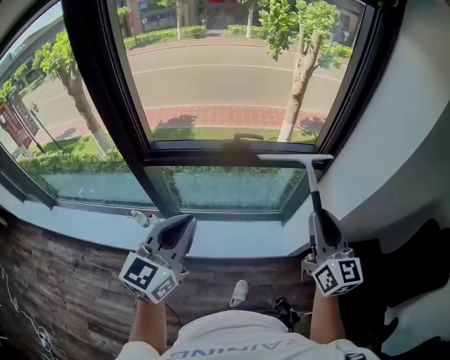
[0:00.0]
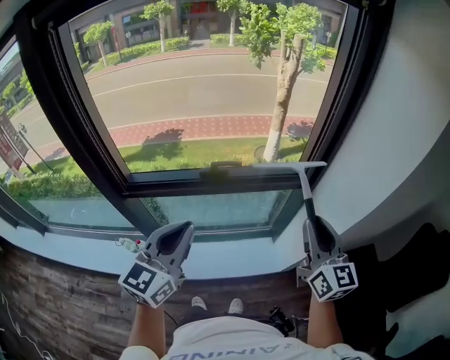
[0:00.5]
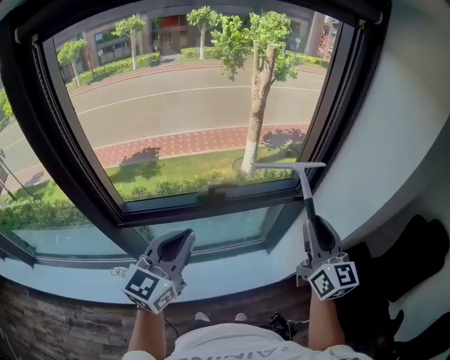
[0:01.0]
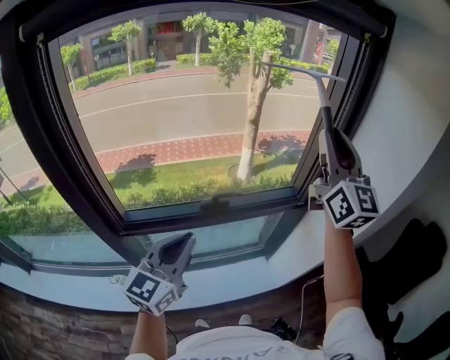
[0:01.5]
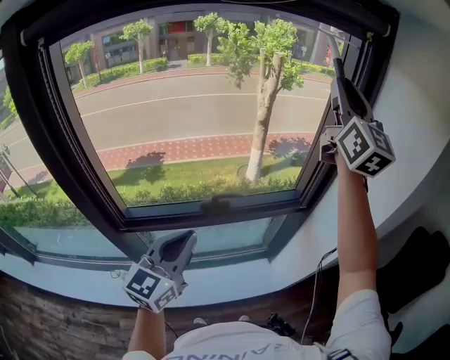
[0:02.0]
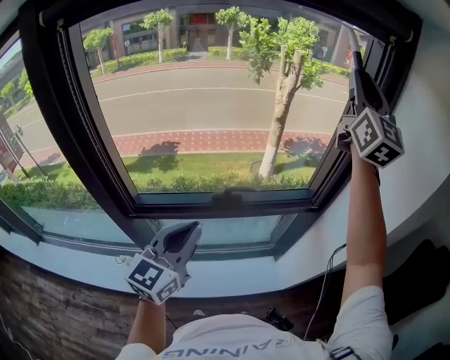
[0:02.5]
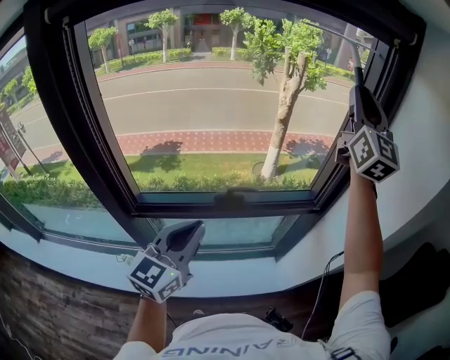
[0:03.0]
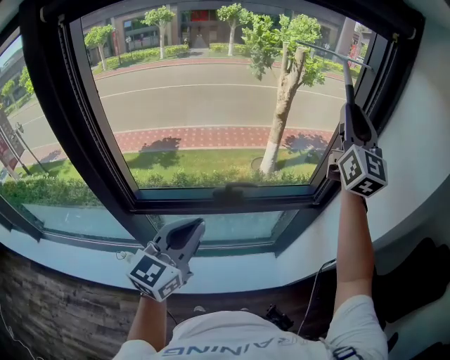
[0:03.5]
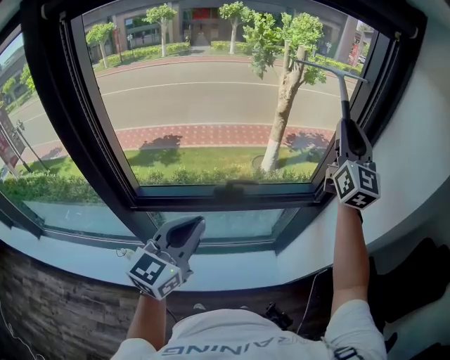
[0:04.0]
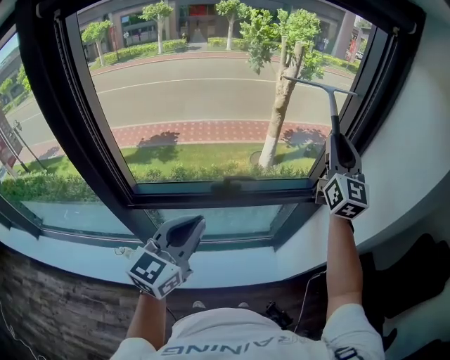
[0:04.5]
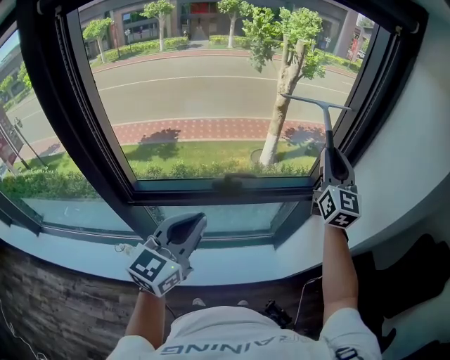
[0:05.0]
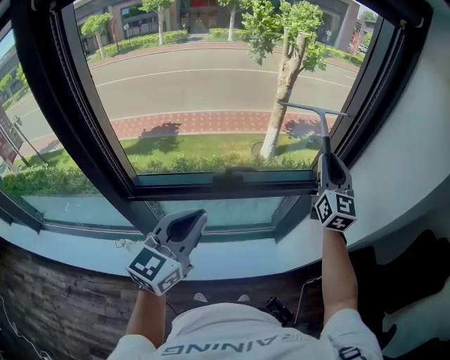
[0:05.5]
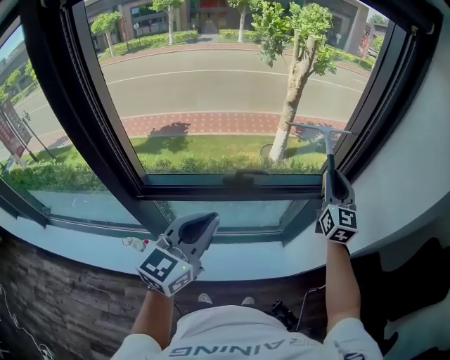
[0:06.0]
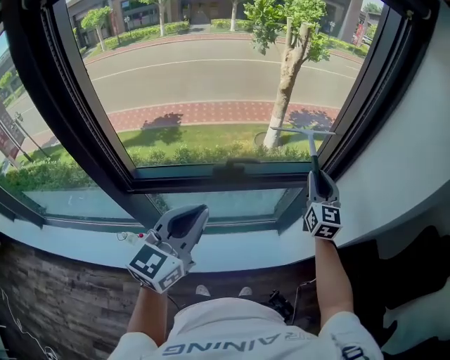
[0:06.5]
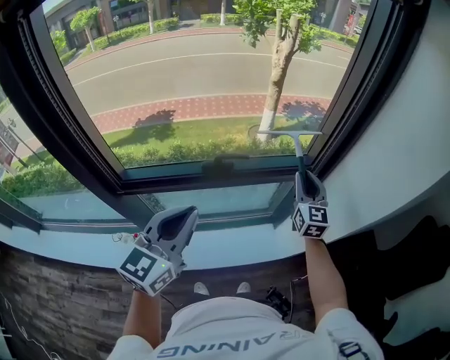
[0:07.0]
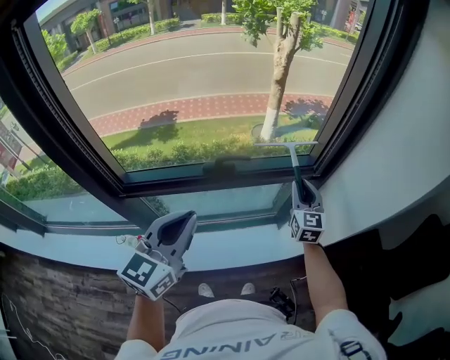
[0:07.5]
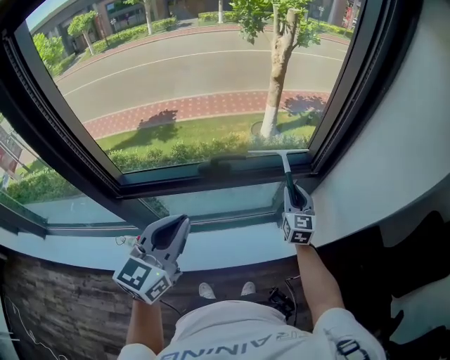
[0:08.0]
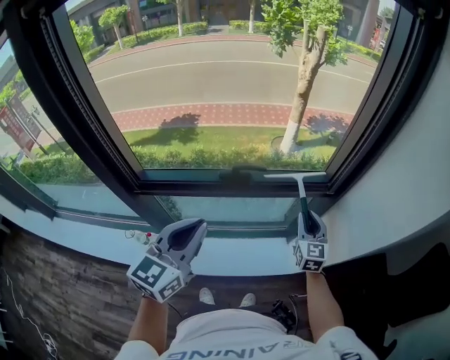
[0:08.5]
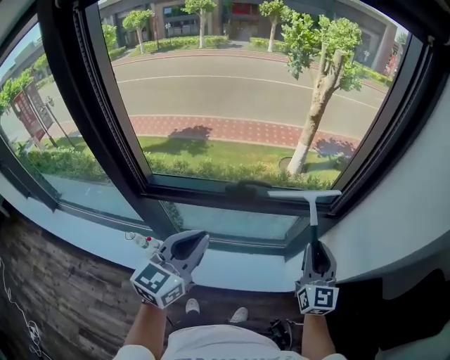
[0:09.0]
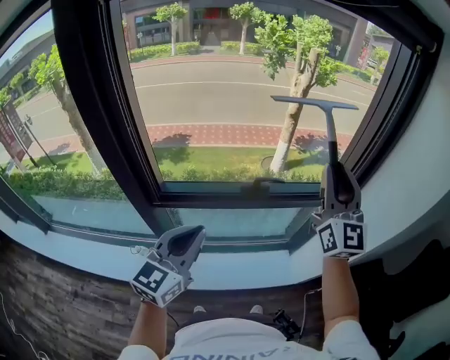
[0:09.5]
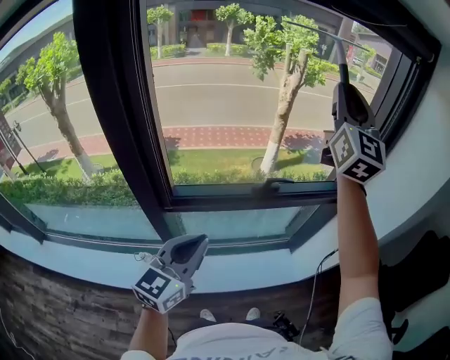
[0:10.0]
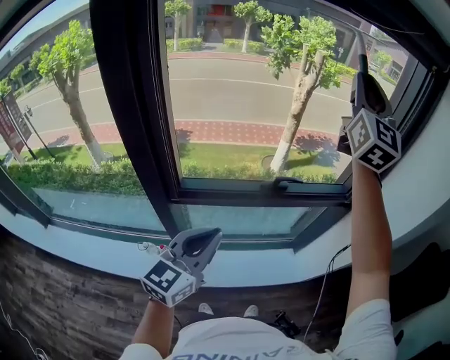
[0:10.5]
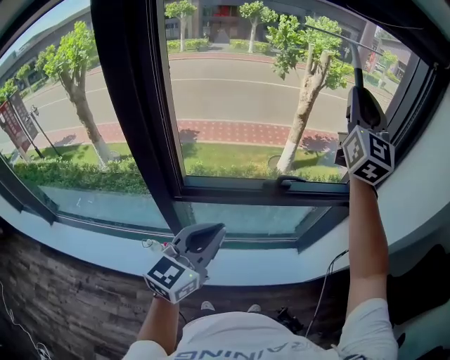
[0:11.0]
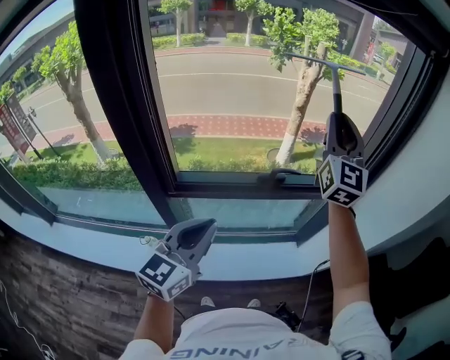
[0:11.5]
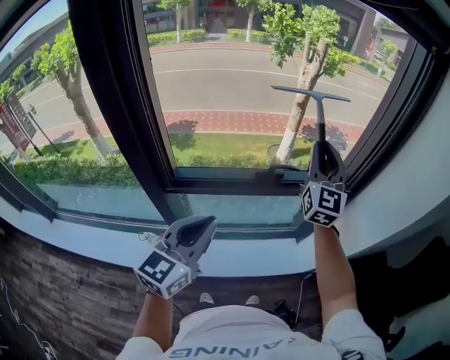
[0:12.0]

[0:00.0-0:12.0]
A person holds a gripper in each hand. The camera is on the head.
0:00.0 to 0:02.0: The right gripper shifts approximately 50 cm upward and forward, and swivels some 30 degrees. Meanwhile the left gripper goes about 20 cm forward.
0:02.0 to 0:04.0: The right gripper is displaced downward by approximately 15 cm.
0:04.0 to 0:06.0: The right gripper is displaced downward by roughly 20 cm.
0:06.0 to 0:08.0: The right gripper is displaced downward by about 20 cm.
0:08.0 to 0:10.0: The left gripper moves to the left and backward, some 20 cm; the right gripper shifts some 50 cm upward and to the left, and tilts its fingers approximately 40 degrees upward.
0:10.0 to 0:12.0: The right gripper goes approximately 20 cm downward. The left gripper moves about 5 cm.

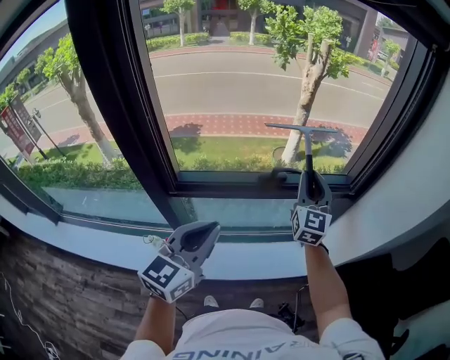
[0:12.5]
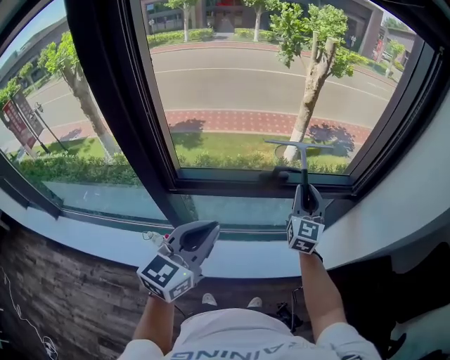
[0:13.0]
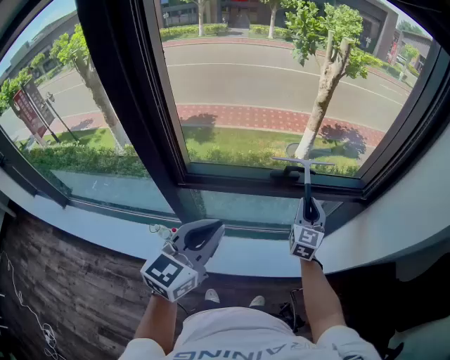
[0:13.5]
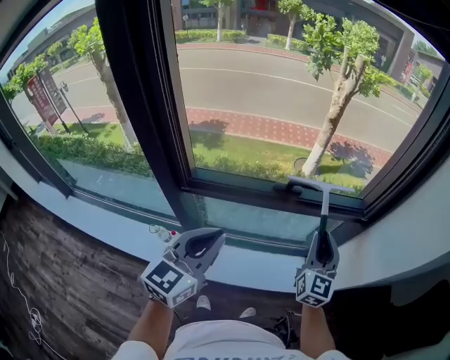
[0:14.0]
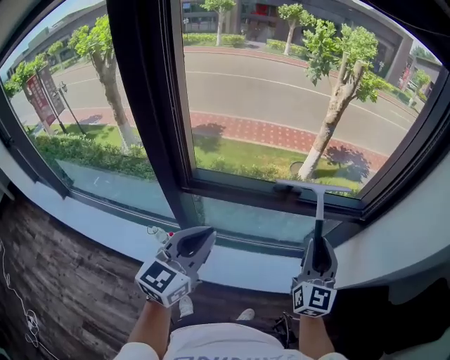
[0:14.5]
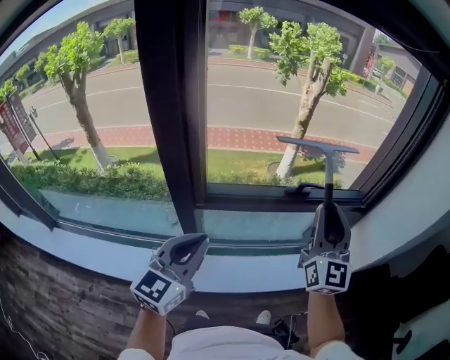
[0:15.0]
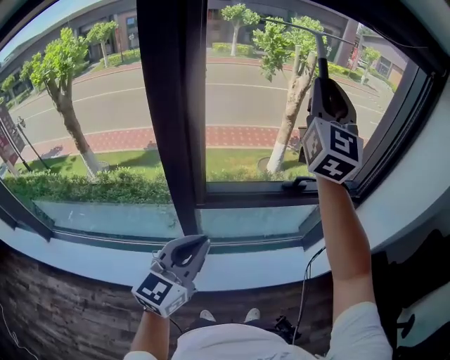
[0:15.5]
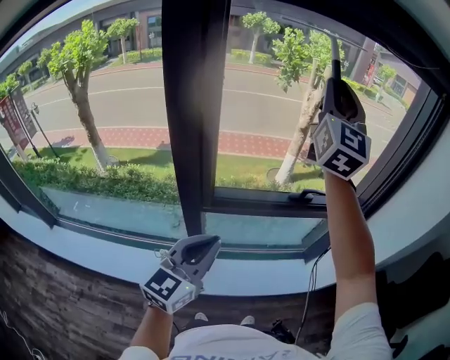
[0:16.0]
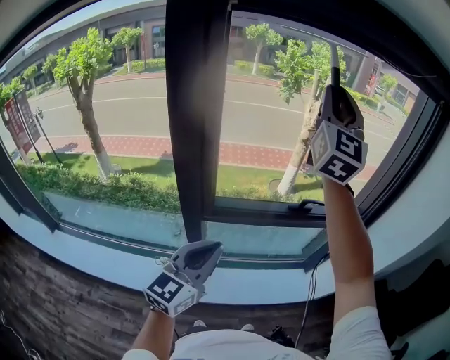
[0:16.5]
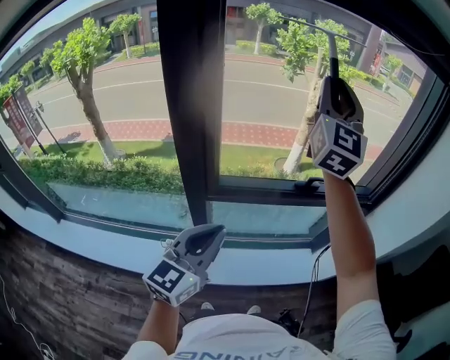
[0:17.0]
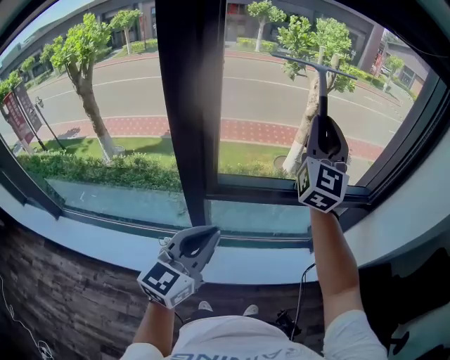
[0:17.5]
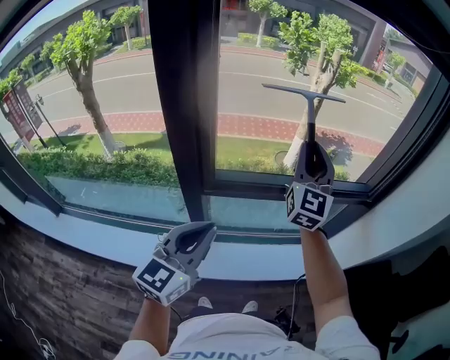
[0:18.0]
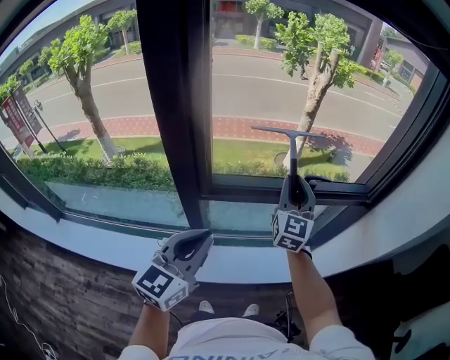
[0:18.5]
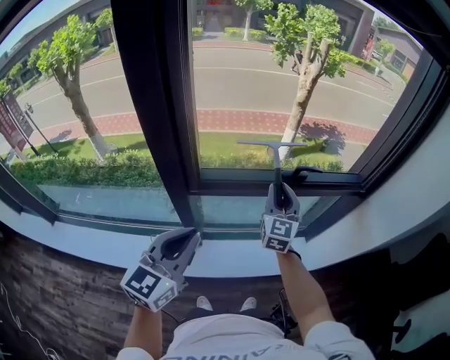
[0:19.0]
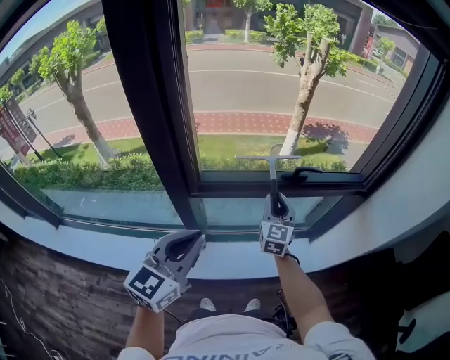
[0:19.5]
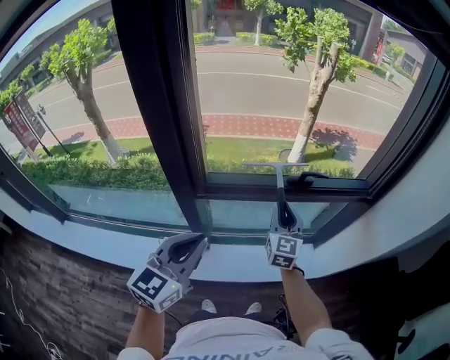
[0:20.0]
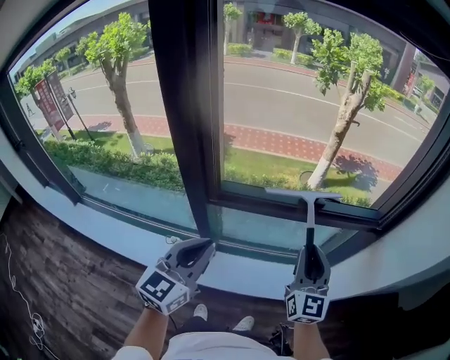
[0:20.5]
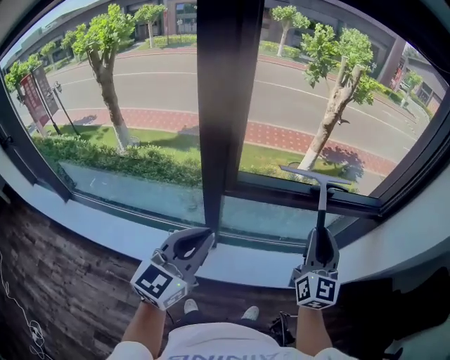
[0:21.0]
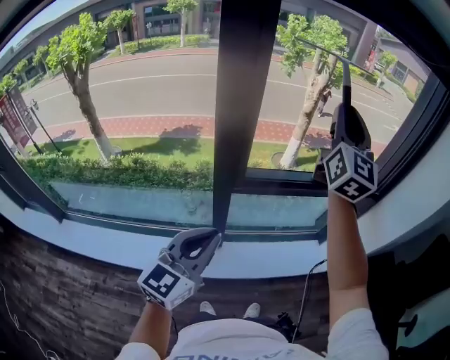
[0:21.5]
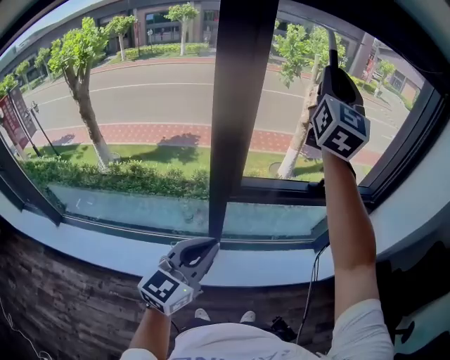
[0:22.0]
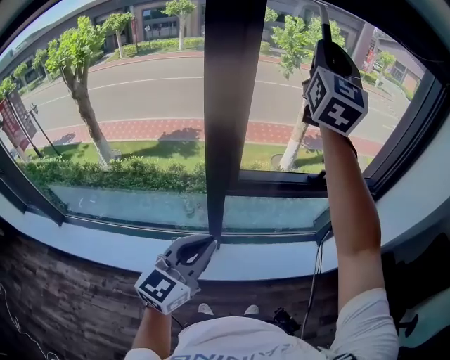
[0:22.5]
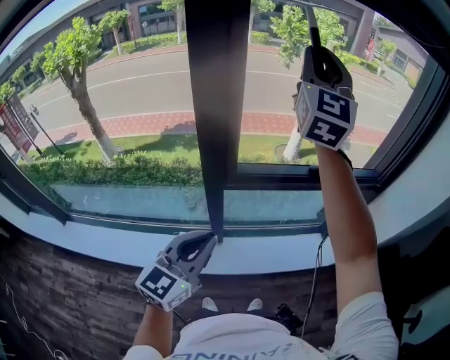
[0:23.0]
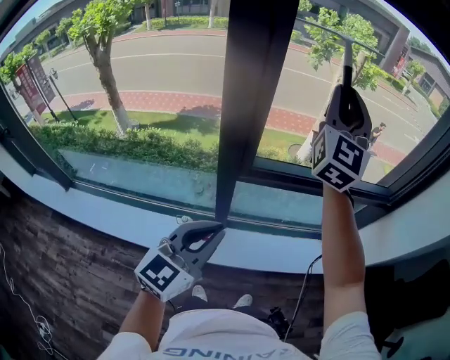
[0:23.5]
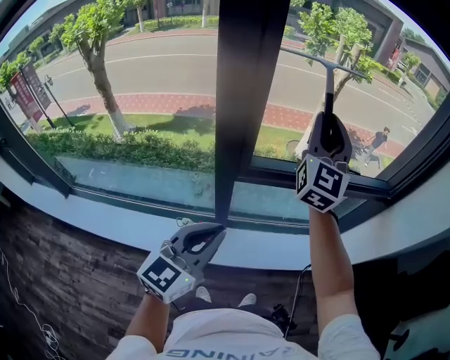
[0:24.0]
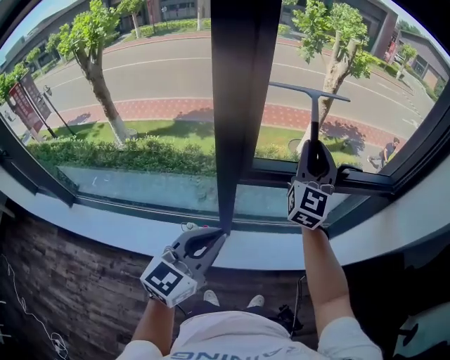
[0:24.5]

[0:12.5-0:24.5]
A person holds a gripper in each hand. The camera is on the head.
0:12.5 to 0:14.5: The right gripper moves backward, about 15 cm, and travels downward and back again, about 15 cm each way.
0:14.5 to 0:16.5: The right gripper goes roughly 50 cm upward and to the left, and turns by about 30 degrees, while the left gripper is displaced to the left and backward by roughly 15 cm.
0:16.5 to 0:18.5: The right gripper travels downward by some 35 cm, and turns by roughly 30 degrees.
0:18.5 to 0:20.5: The right gripper shifts roughly 15 cm backward and to the right, and moves roughly 15 cm downward and comes back.
0:20.5 to 0:22.5: The right gripper travels upward and to the left by roughly 50 cm, and changes its angle by roughly 30 degrees, while the left gripper goes about 15 cm to the left and backward.
0:22.5 to 0:24.5: The right gripper heads downward, covering roughly 30 cm.

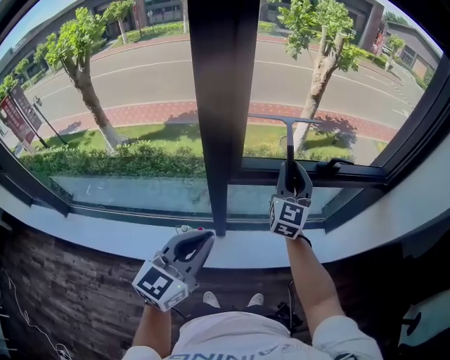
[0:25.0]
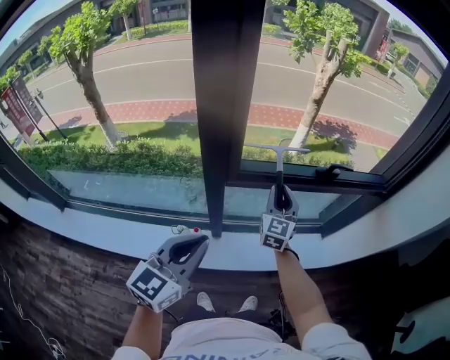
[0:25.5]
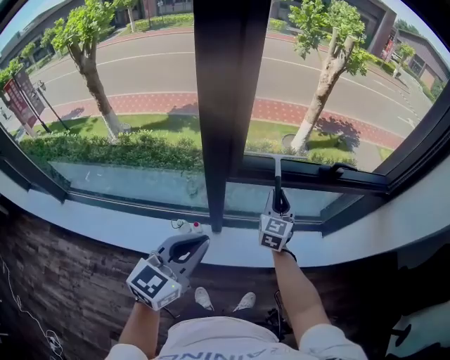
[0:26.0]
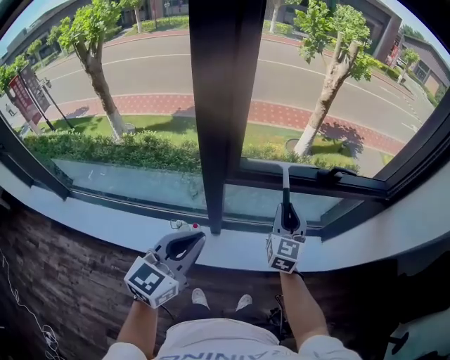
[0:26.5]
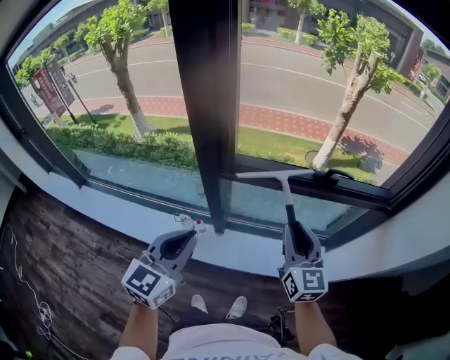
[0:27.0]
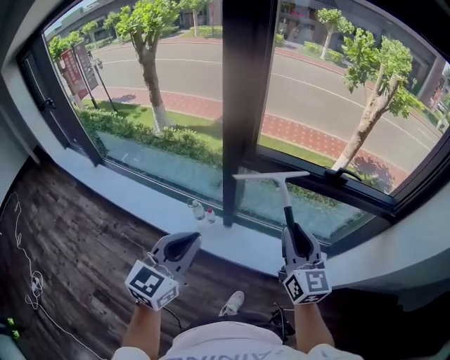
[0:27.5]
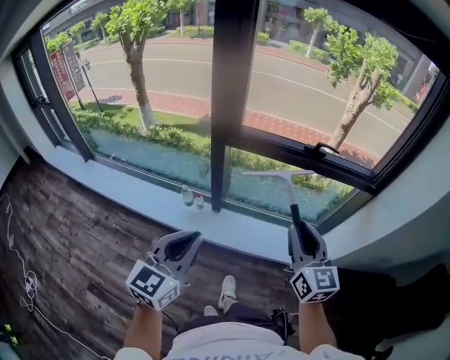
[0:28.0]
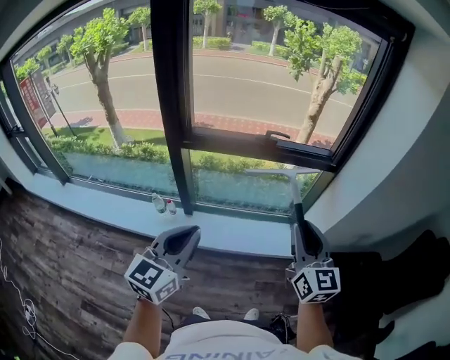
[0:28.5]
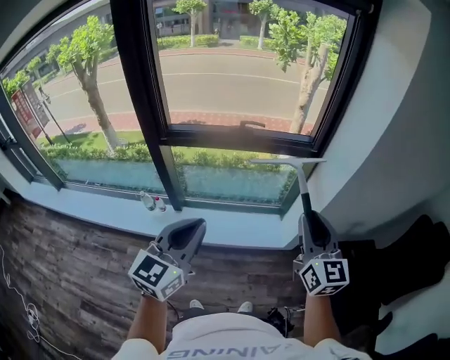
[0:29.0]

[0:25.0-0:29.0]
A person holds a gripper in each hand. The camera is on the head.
0:25.0 to 0:27.0: The left gripper moves to the right, about 10 cm, while the right gripper heads to the right and backward, covering some 20 cm, and turns by some 30 degrees.
0:27.0 to 0:29.0: The pair of grippers is taken to the right and backward, roughly 40 cm.
